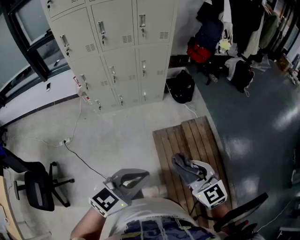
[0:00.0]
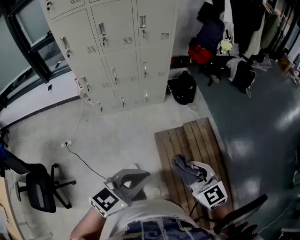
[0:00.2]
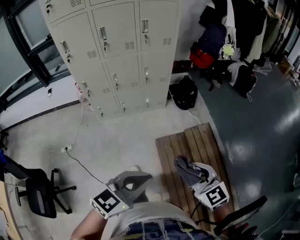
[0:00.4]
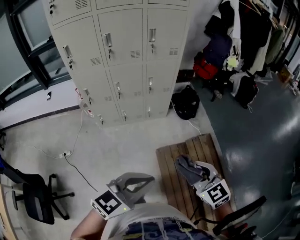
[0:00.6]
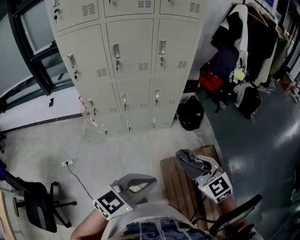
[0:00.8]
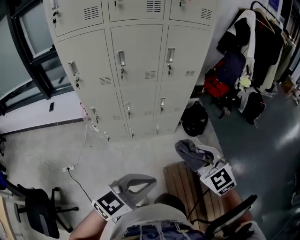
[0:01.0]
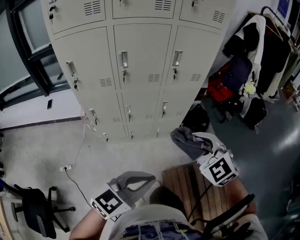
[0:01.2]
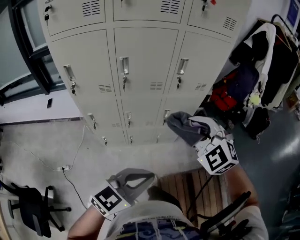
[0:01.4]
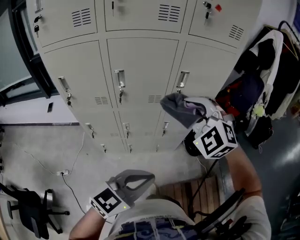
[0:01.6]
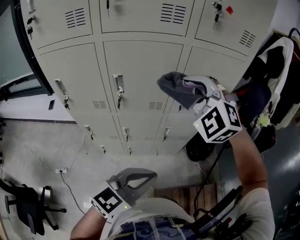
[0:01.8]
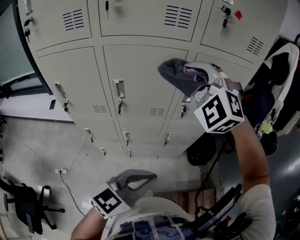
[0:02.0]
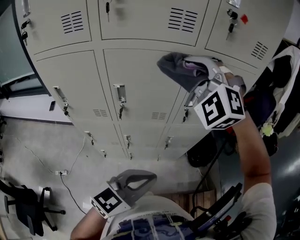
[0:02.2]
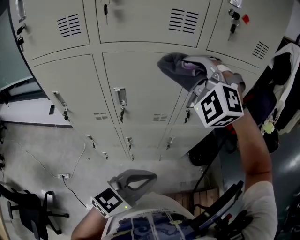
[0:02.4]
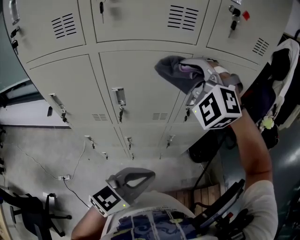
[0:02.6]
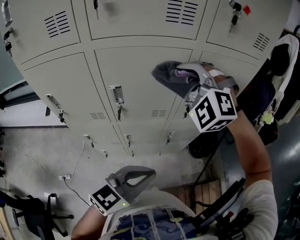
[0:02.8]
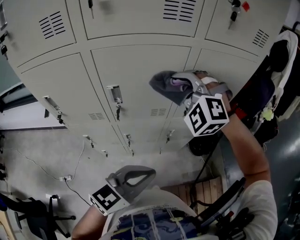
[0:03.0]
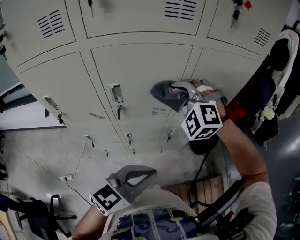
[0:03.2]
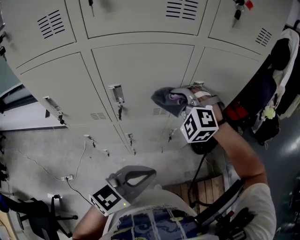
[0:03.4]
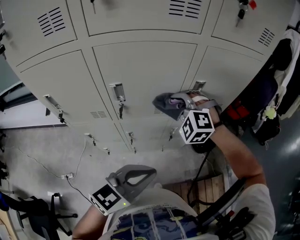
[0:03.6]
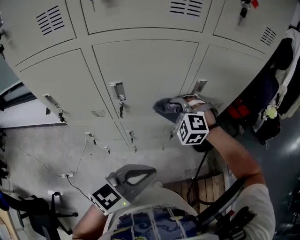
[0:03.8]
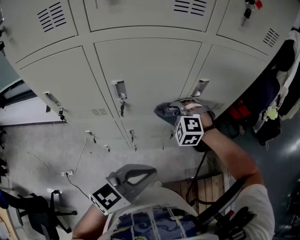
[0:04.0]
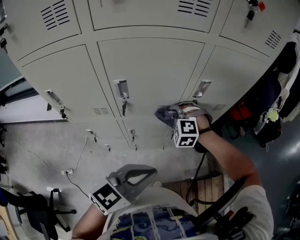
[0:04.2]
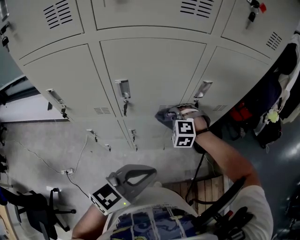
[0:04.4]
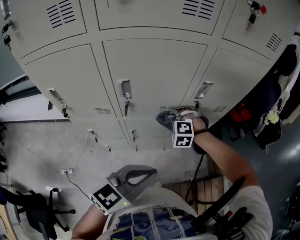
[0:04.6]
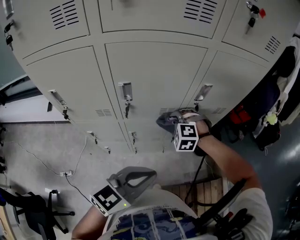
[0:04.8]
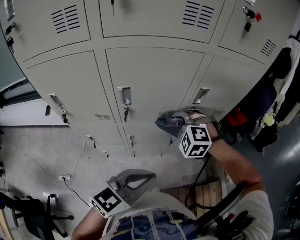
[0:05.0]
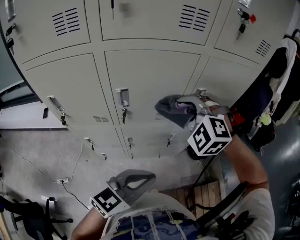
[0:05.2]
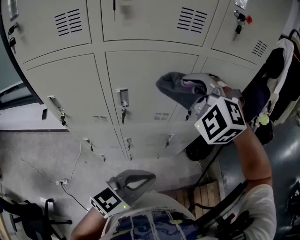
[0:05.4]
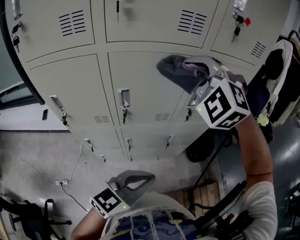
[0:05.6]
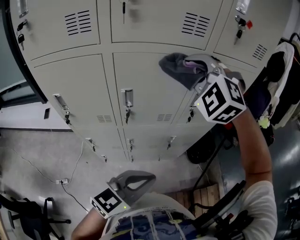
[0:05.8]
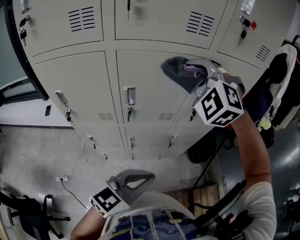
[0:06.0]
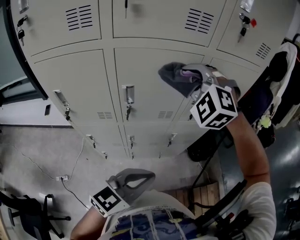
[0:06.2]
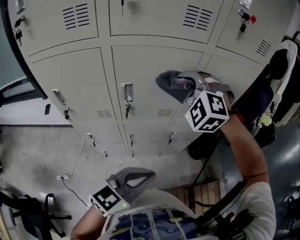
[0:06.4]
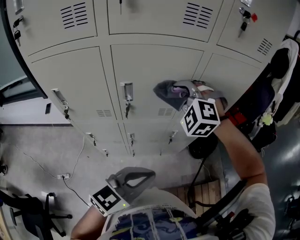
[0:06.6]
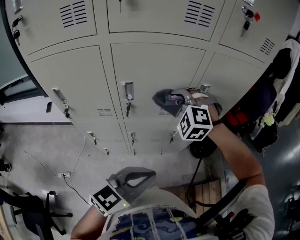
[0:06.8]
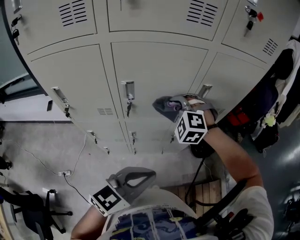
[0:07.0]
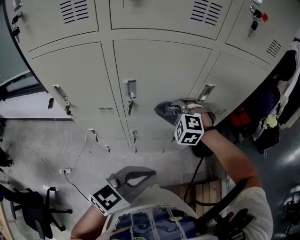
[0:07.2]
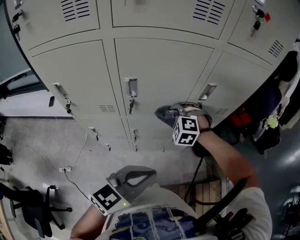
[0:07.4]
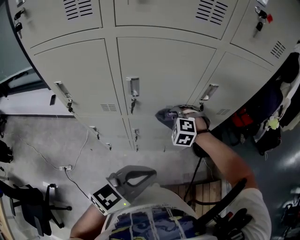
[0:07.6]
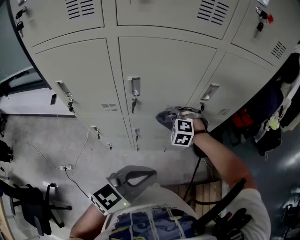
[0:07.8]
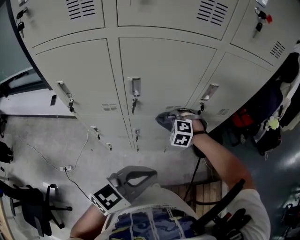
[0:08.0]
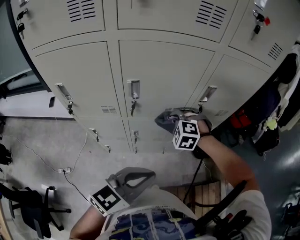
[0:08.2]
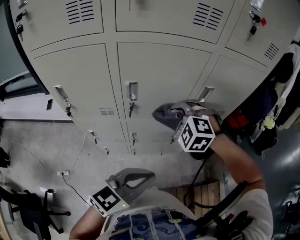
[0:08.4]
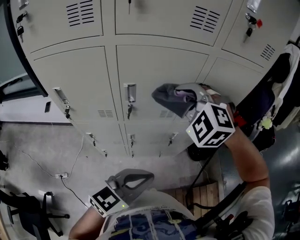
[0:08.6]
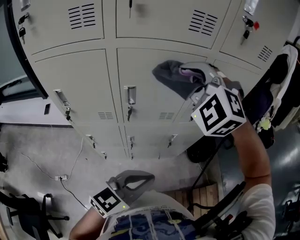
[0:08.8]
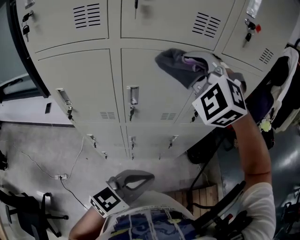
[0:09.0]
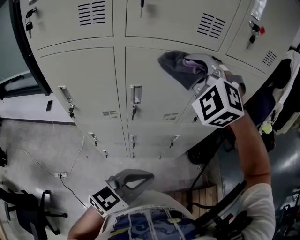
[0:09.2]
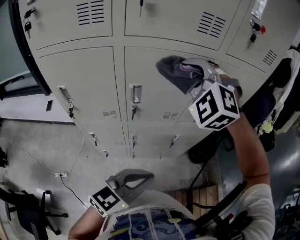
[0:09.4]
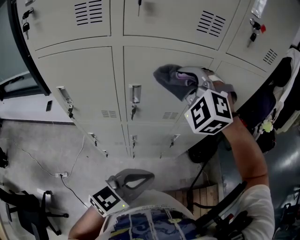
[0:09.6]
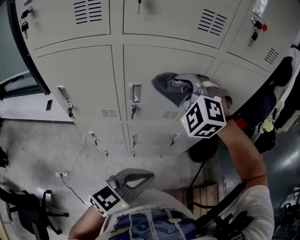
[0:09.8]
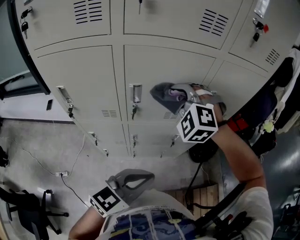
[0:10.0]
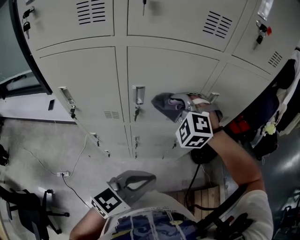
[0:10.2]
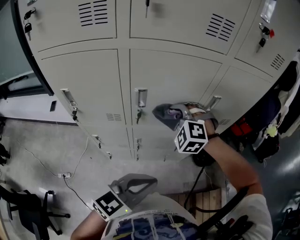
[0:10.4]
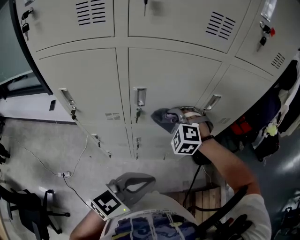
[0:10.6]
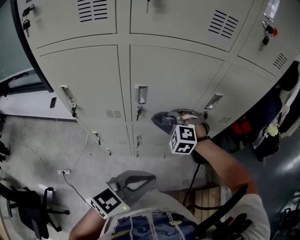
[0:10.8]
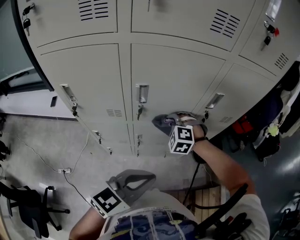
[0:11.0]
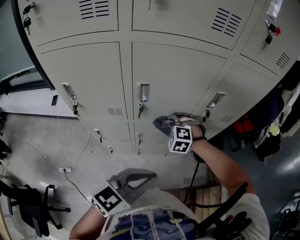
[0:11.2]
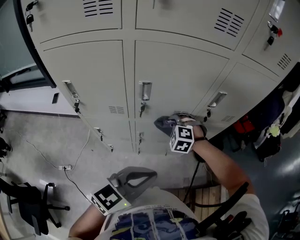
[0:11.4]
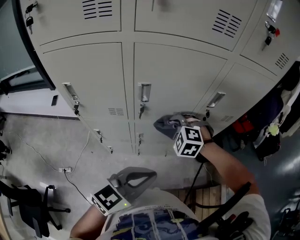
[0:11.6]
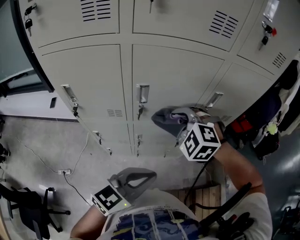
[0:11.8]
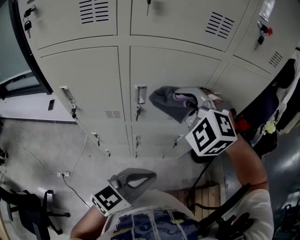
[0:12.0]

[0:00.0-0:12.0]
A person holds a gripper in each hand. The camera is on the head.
0:00.0 to 0:01.6: The left gripper ends up approximately 50 cm from where it was.
0:01.6 to 0:03.0: The left gripper ends up roughly 15 cm from where it was.

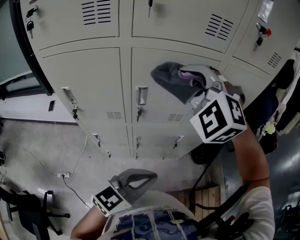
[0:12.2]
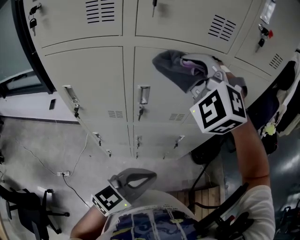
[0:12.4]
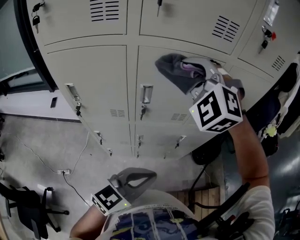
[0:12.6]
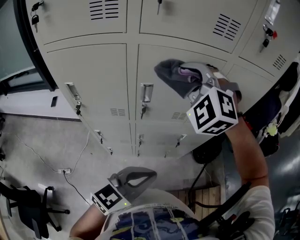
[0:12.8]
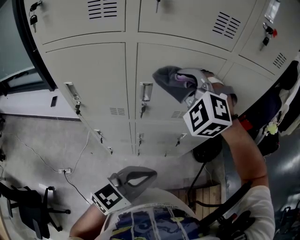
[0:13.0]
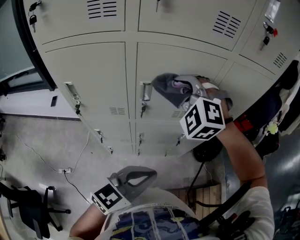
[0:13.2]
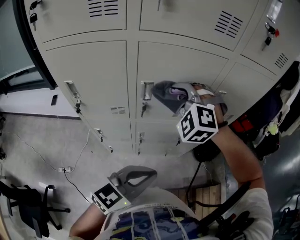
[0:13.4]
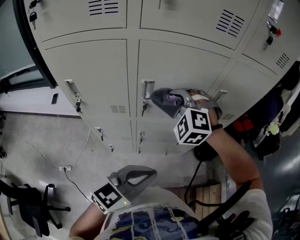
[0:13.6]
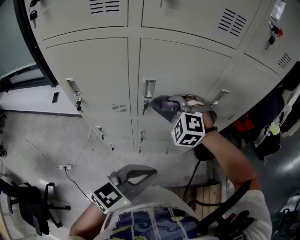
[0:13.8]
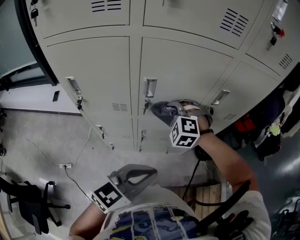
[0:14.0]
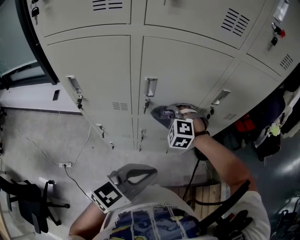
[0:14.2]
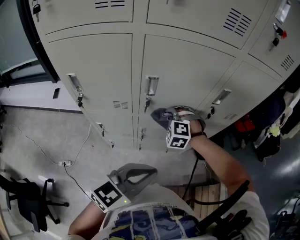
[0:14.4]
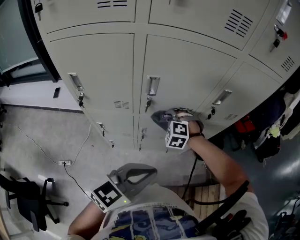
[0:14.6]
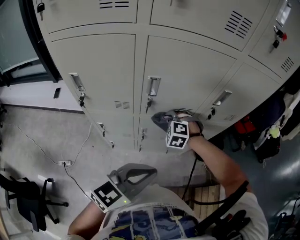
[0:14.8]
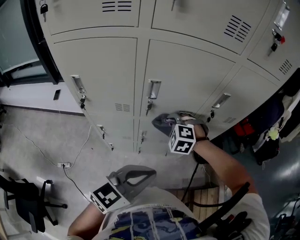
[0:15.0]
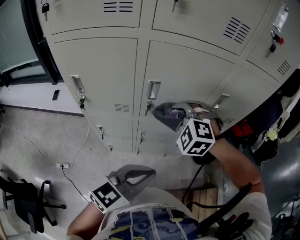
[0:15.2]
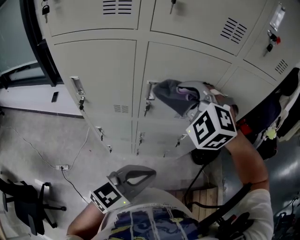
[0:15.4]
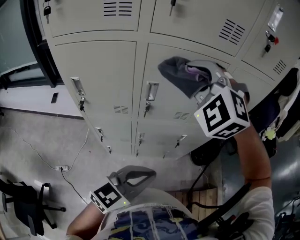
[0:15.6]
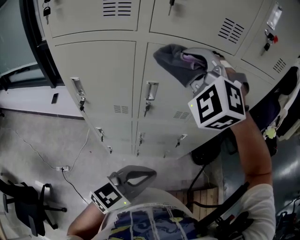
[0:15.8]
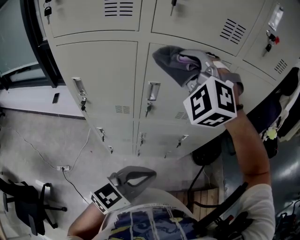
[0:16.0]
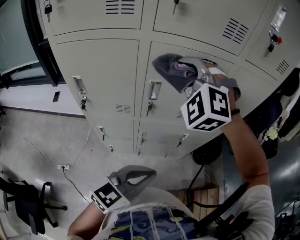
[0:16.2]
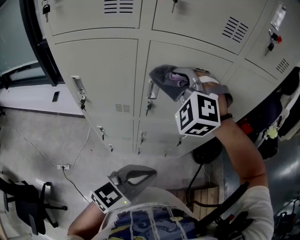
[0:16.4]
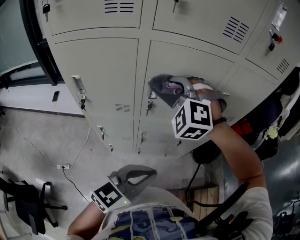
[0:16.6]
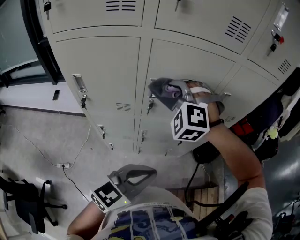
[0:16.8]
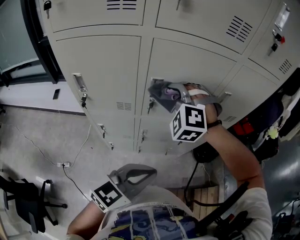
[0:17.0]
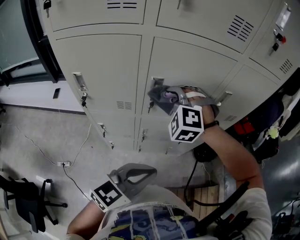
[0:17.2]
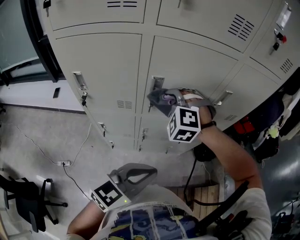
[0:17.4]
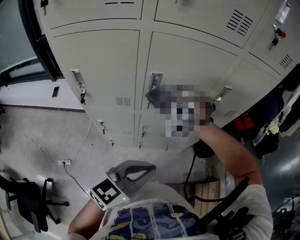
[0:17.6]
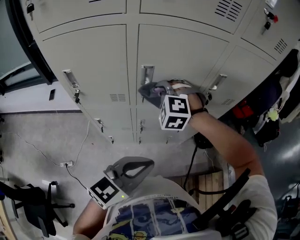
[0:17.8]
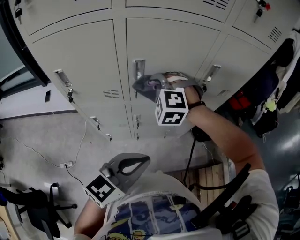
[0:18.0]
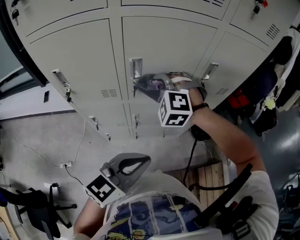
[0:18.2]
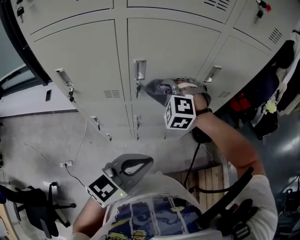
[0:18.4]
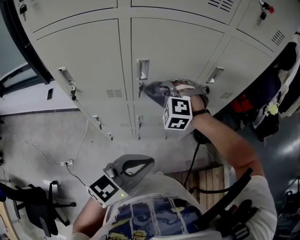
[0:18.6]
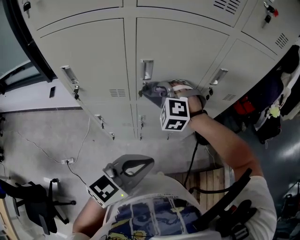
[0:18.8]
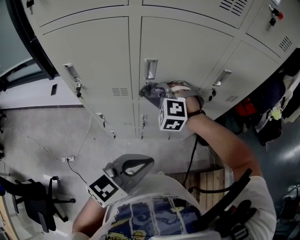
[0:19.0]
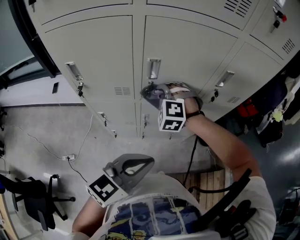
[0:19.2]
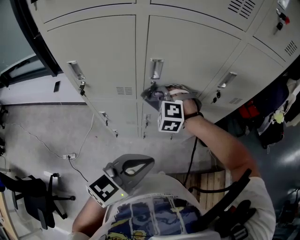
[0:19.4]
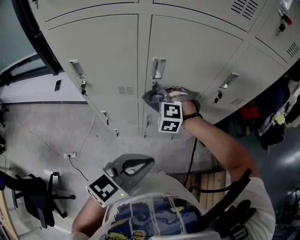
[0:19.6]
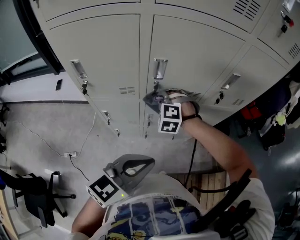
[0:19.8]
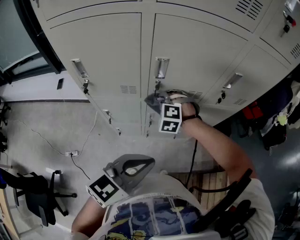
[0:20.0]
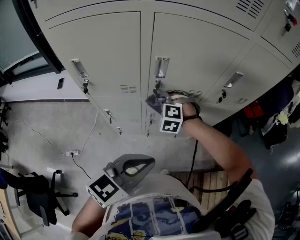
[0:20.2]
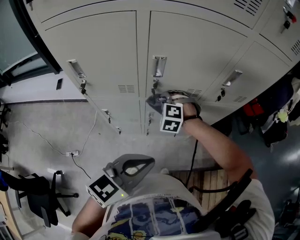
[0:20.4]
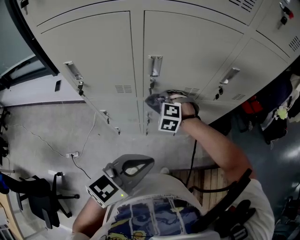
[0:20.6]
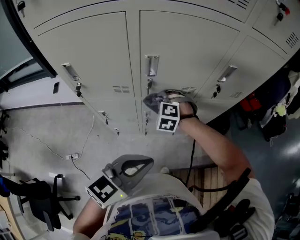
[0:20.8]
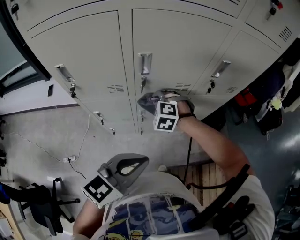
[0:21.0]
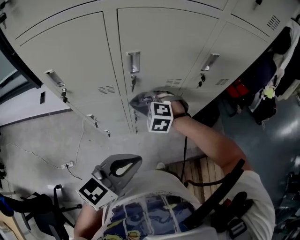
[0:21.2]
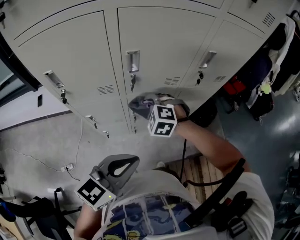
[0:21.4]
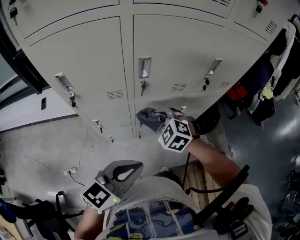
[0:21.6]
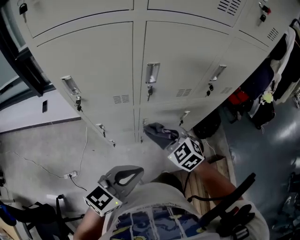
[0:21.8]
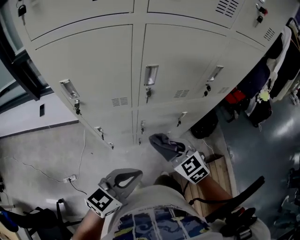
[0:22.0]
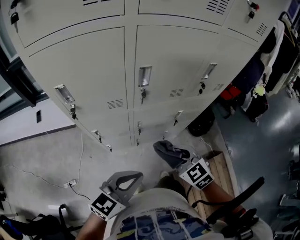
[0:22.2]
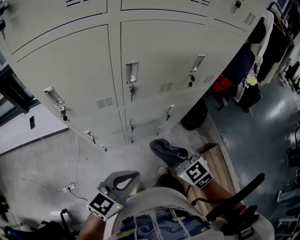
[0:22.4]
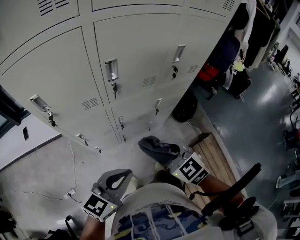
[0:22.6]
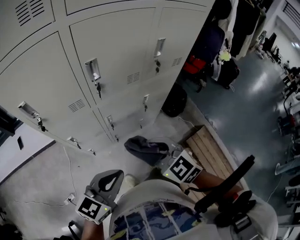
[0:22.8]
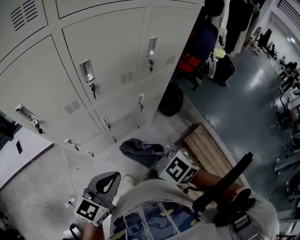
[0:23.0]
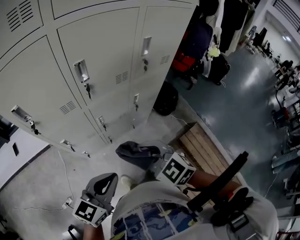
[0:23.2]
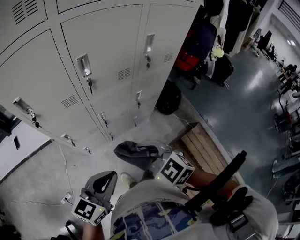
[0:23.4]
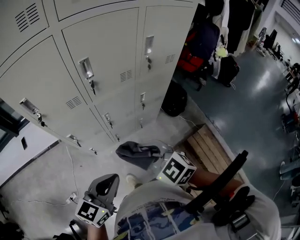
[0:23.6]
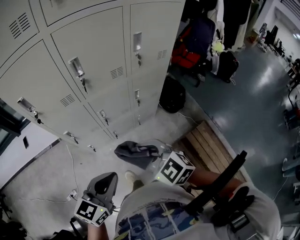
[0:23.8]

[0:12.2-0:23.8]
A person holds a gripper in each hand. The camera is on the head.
0:21.0 to 0:22.4: The left gripper ends up some 10 cm from where it was.
0:22.4 to 0:23.8: The left gripper shifts by roughly 10 cm.

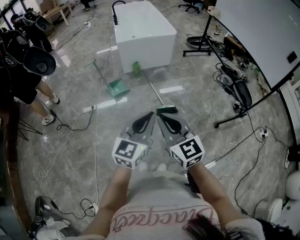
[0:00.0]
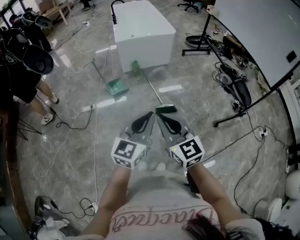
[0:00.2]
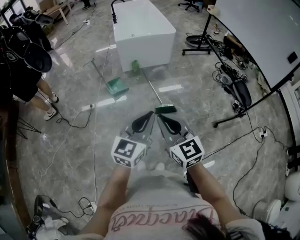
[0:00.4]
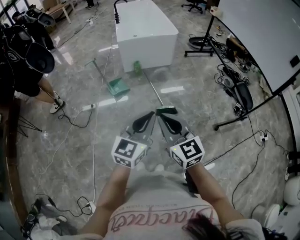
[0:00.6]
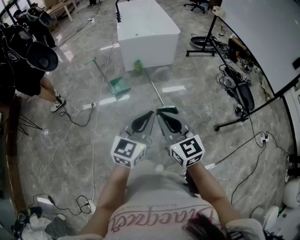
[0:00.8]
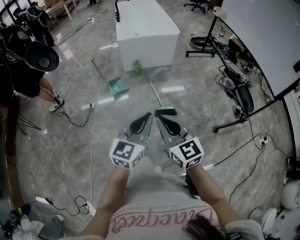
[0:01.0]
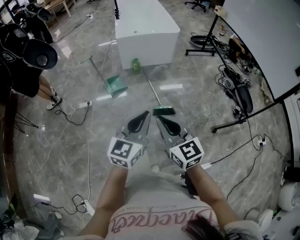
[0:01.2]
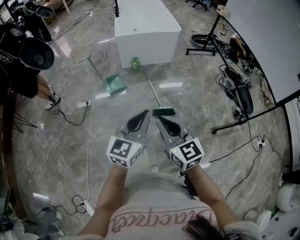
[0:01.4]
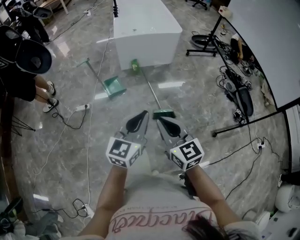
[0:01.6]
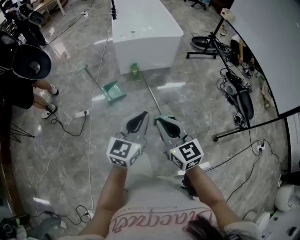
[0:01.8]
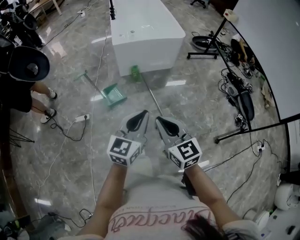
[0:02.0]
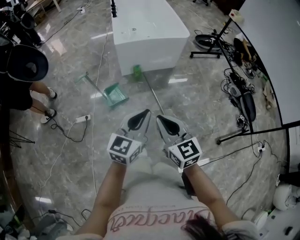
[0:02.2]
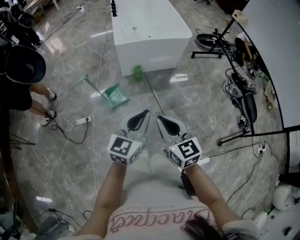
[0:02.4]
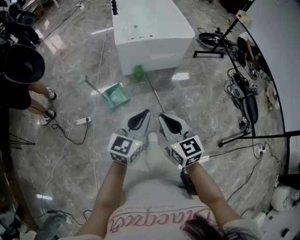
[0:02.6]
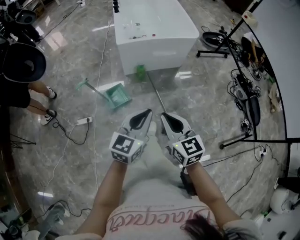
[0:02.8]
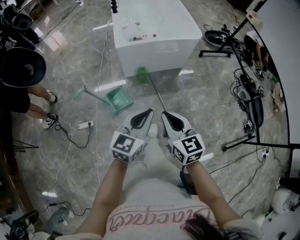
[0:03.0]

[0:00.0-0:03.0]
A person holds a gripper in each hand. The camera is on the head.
0:00.0 to 0:01.6: Both grippers travel together forward, approximately 10 cm.
0:01.6 to 0:03.0: Both grippers move forward, about 30 cm.
